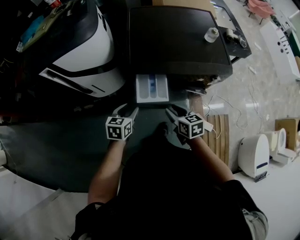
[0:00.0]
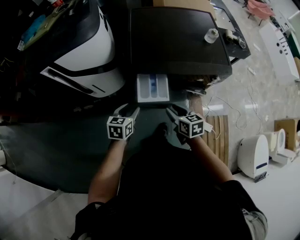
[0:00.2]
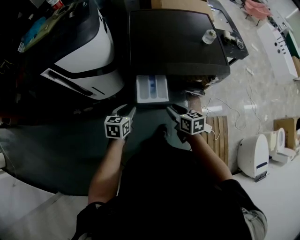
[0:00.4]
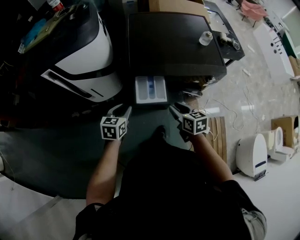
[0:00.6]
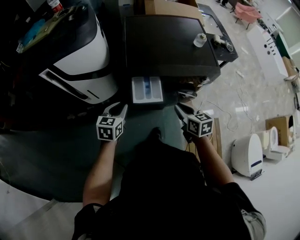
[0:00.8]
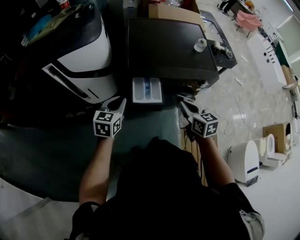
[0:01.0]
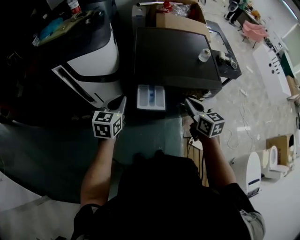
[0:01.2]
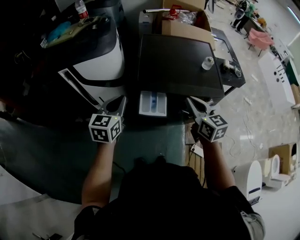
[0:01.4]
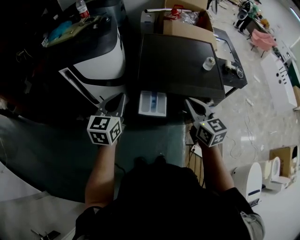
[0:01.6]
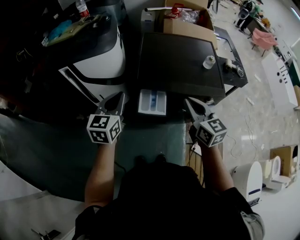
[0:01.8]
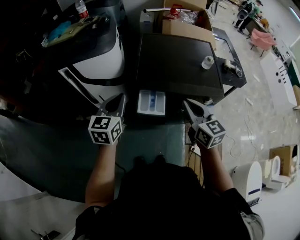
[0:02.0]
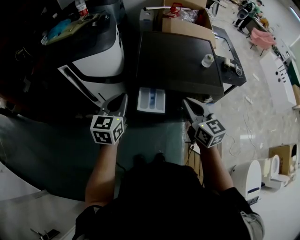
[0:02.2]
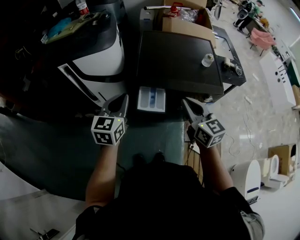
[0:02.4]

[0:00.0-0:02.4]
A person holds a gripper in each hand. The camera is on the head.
0:00.0 to 0:01.2: The grippers both shift upward by some 15 cm. The left gripper closes. The right gripper closes its fingers.
0:01.2 to 0:02.4: Both grippers move upward, some 10 cm.

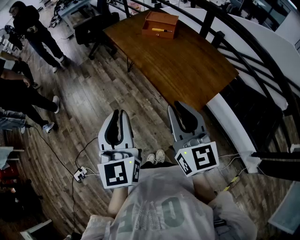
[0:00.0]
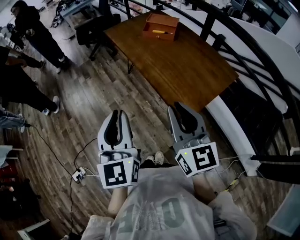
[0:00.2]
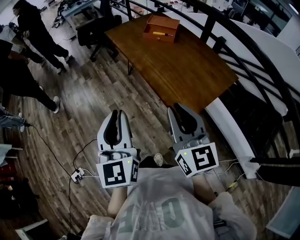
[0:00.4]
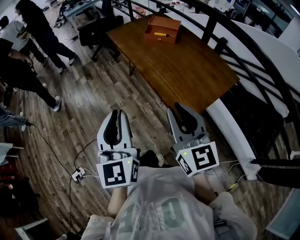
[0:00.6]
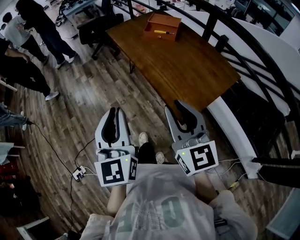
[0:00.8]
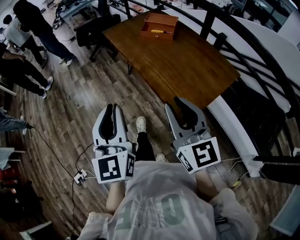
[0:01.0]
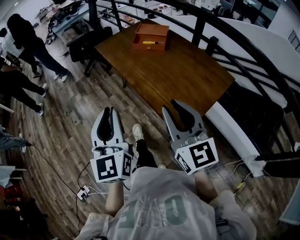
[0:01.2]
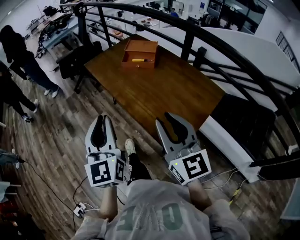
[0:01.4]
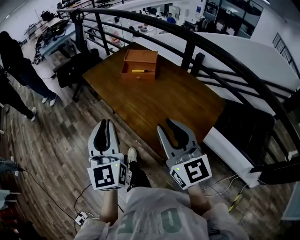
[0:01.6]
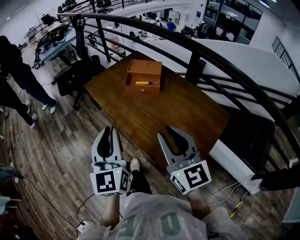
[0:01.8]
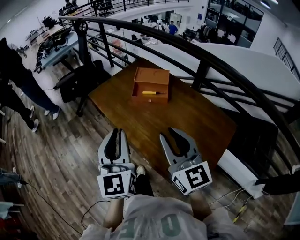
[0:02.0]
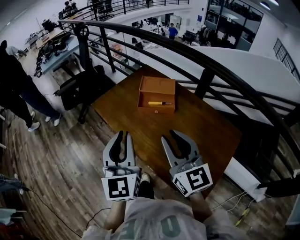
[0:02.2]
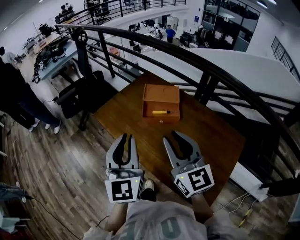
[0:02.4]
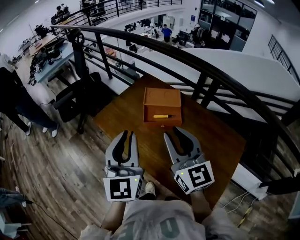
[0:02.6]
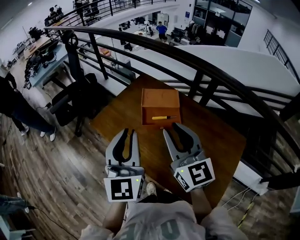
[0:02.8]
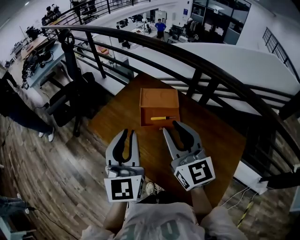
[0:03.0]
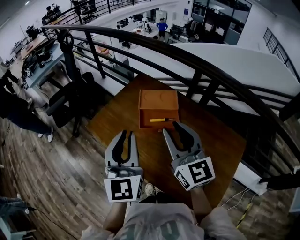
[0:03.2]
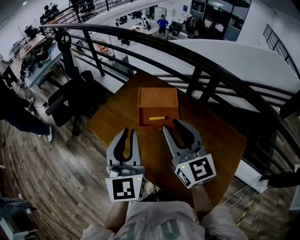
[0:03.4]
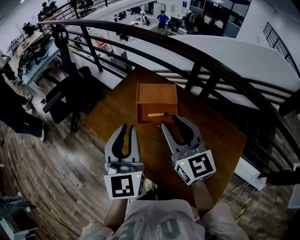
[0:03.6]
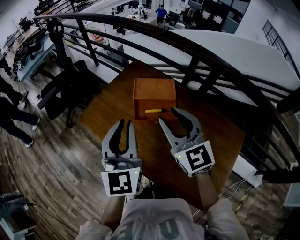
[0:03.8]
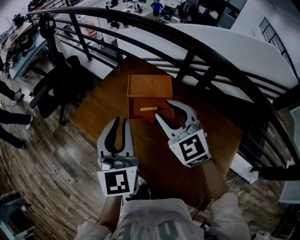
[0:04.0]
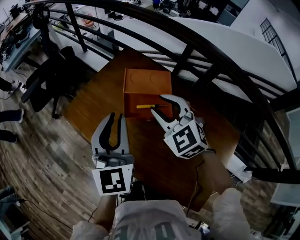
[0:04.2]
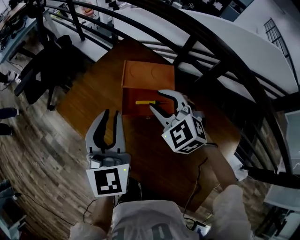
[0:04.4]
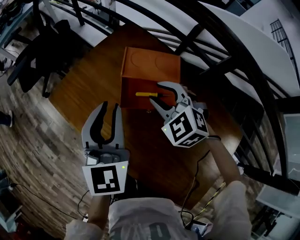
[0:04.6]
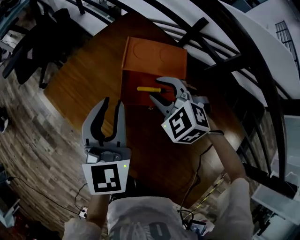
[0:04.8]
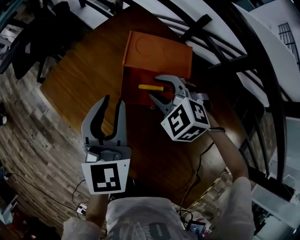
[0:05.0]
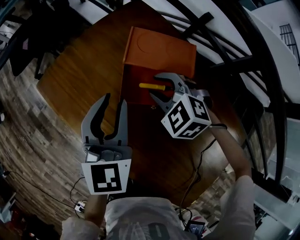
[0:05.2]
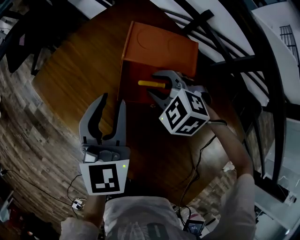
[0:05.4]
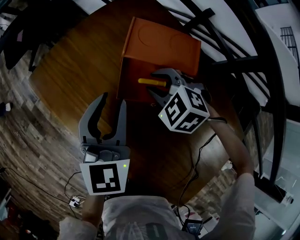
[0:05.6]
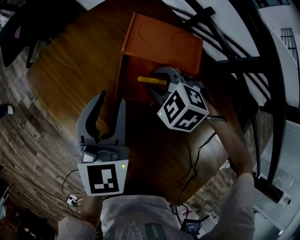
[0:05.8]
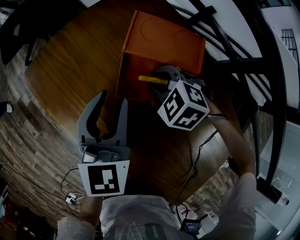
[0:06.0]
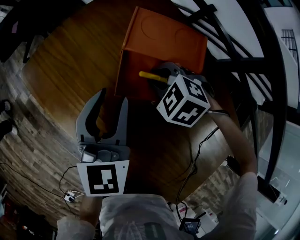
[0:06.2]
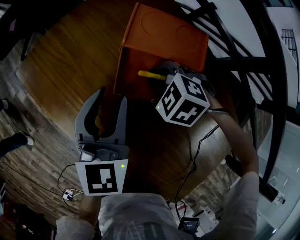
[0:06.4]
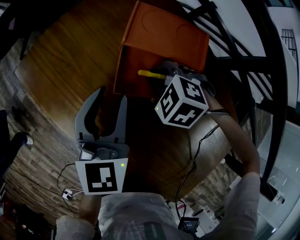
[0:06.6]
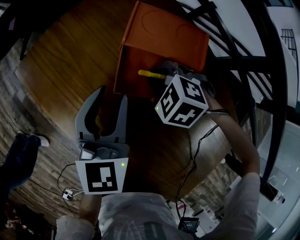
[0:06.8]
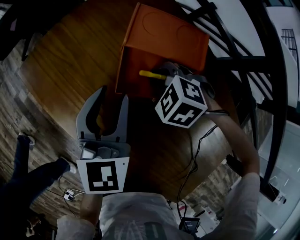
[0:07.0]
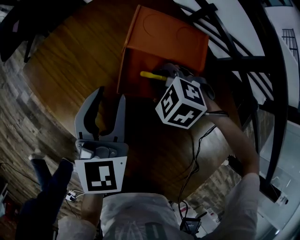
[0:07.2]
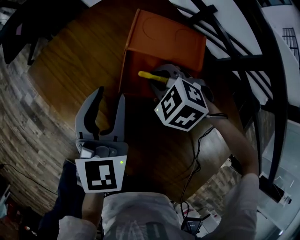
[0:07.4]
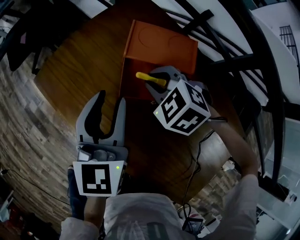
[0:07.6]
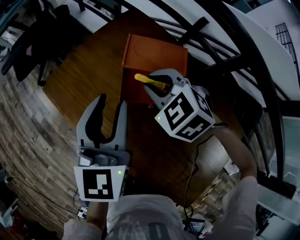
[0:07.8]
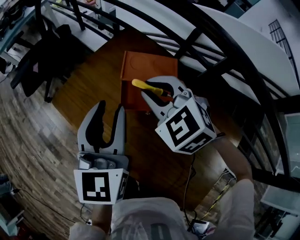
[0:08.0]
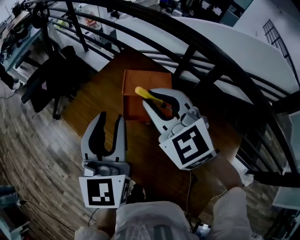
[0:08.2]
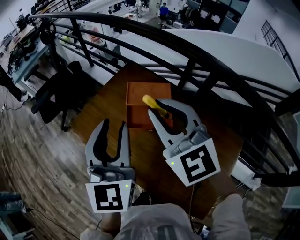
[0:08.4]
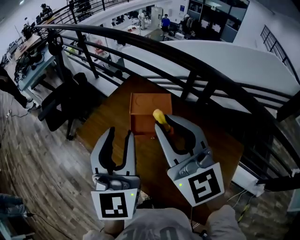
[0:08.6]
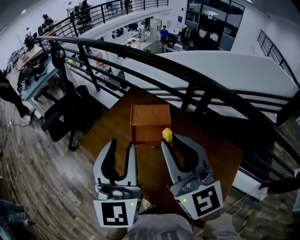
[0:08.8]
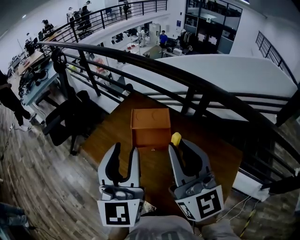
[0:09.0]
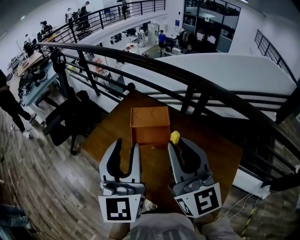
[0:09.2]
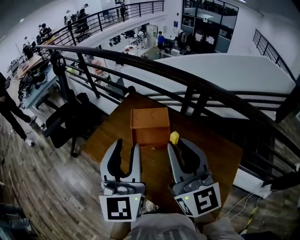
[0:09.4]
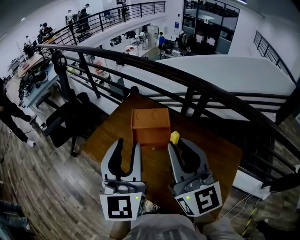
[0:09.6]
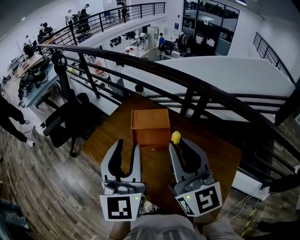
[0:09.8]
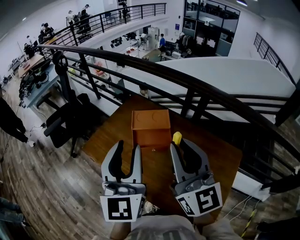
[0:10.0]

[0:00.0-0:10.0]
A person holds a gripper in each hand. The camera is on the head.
0:00.0 to 0:01.4: The left gripper goes approximately 15 cm forward; the right gripper moves forward, some 10 cm.
0:01.4 to 0:02.8: The grippers both shift forward by about 35 cm.
0:02.8 to 0:04.2: Both grippers travel together forward and downward, about 15 cm. The right gripper angles its fingers downward, by roughly 30 degrees.
0:04.2 to 0:05.8: Both grippers travel together downward, about 20 cm. The right gripper tilts its fingers some 30 degrees downward.
0:05.8 to 0:07.2: The grippers move only a little.
0:07.2 to 0:08.6: The left gripper heads upward and backward, covering roughly 30 cm, and rotates about 30 degrees. The right gripper goes some 40 cm upward, and tilts its fingers about 80 degrees upward.
0:08.6 to 0:10.0: The right gripper shifts approximately 5 cm backward.

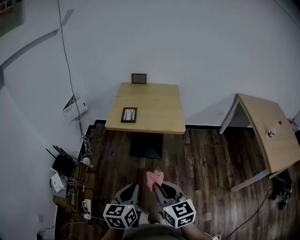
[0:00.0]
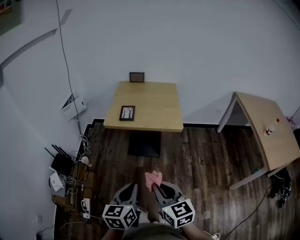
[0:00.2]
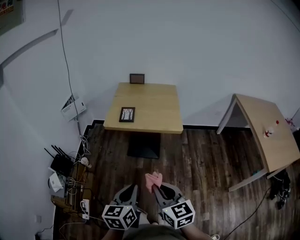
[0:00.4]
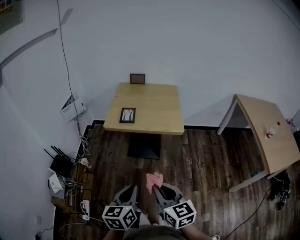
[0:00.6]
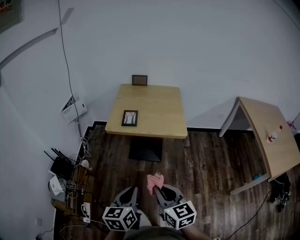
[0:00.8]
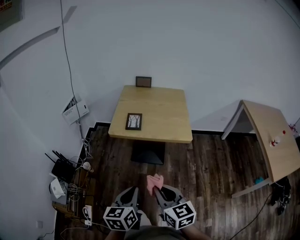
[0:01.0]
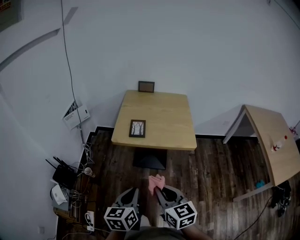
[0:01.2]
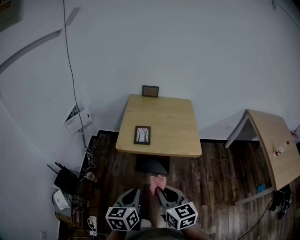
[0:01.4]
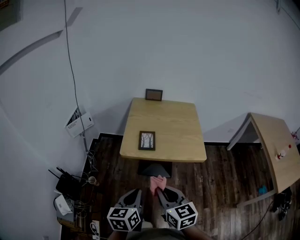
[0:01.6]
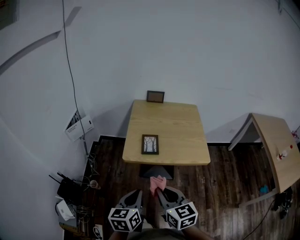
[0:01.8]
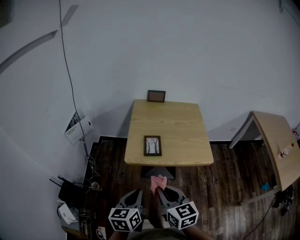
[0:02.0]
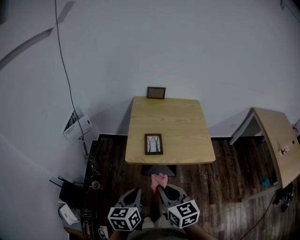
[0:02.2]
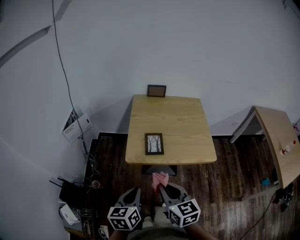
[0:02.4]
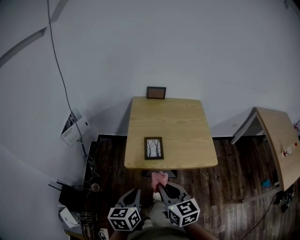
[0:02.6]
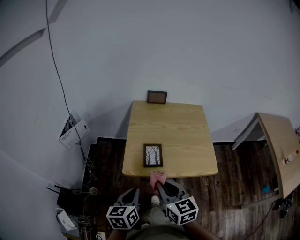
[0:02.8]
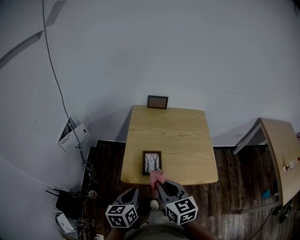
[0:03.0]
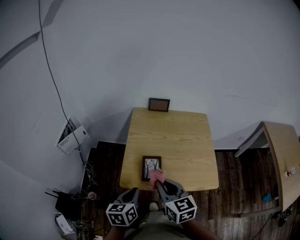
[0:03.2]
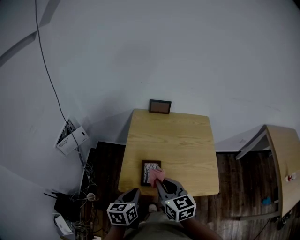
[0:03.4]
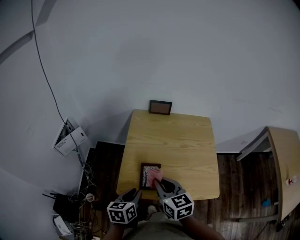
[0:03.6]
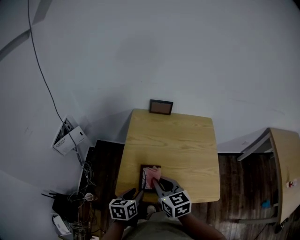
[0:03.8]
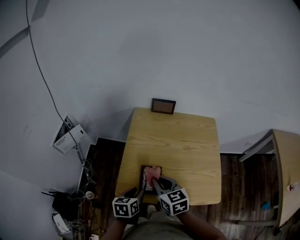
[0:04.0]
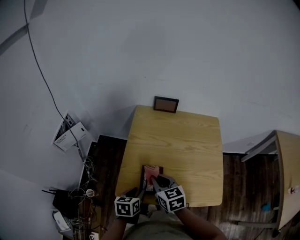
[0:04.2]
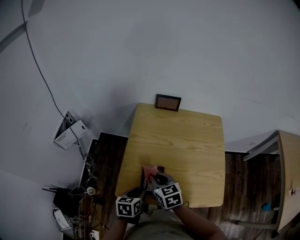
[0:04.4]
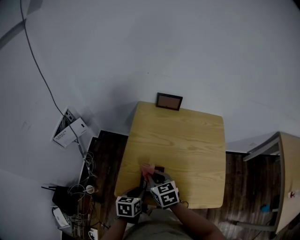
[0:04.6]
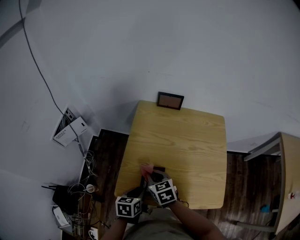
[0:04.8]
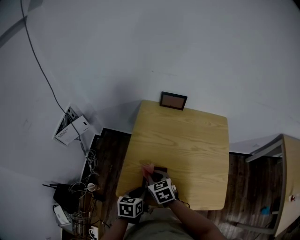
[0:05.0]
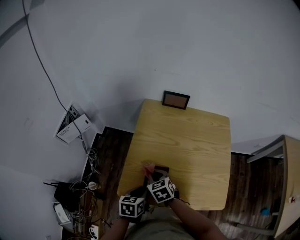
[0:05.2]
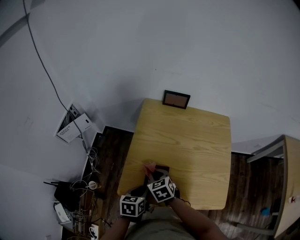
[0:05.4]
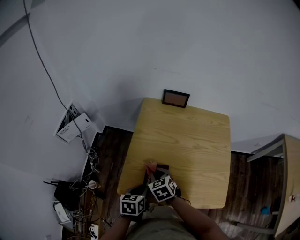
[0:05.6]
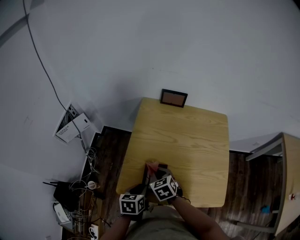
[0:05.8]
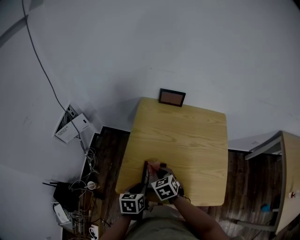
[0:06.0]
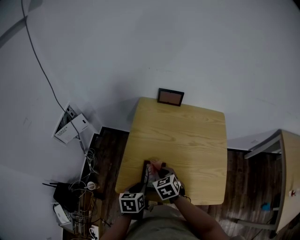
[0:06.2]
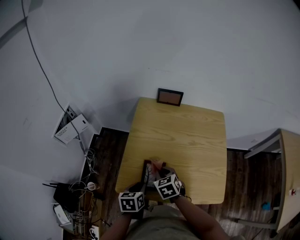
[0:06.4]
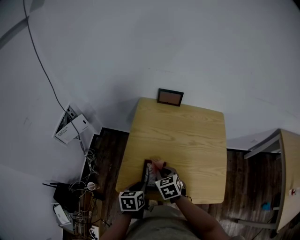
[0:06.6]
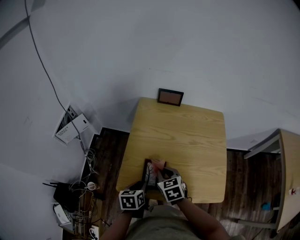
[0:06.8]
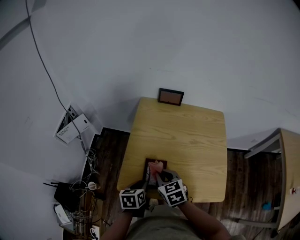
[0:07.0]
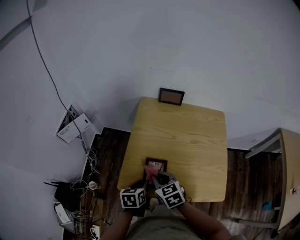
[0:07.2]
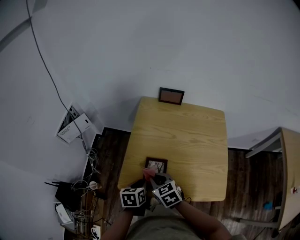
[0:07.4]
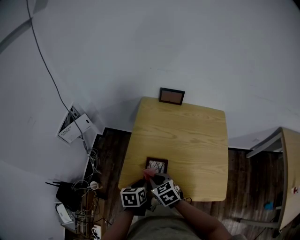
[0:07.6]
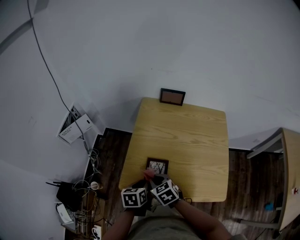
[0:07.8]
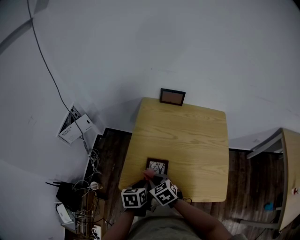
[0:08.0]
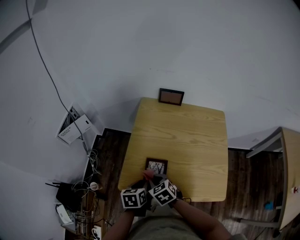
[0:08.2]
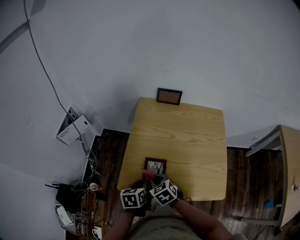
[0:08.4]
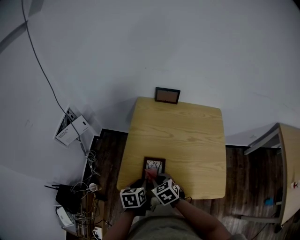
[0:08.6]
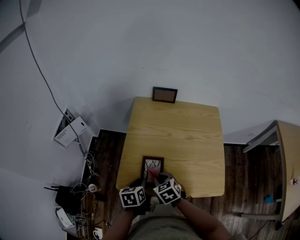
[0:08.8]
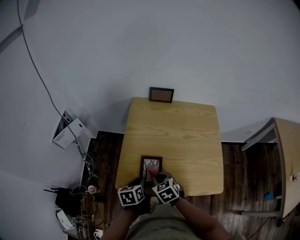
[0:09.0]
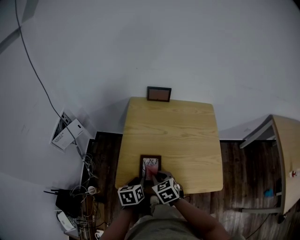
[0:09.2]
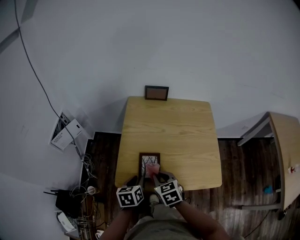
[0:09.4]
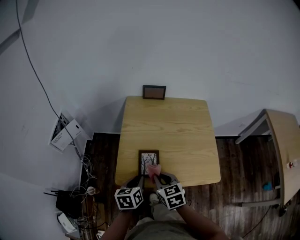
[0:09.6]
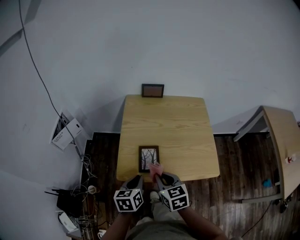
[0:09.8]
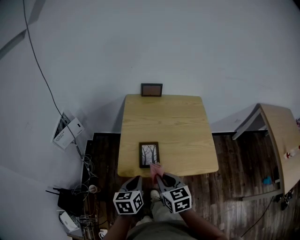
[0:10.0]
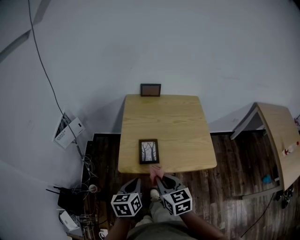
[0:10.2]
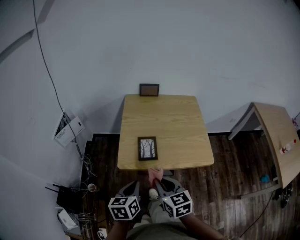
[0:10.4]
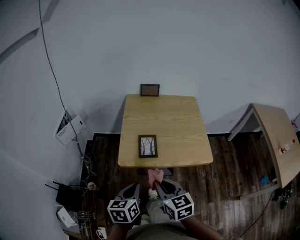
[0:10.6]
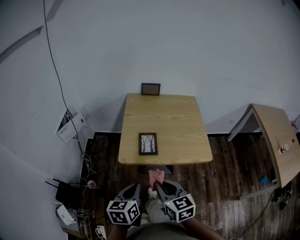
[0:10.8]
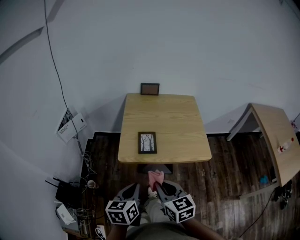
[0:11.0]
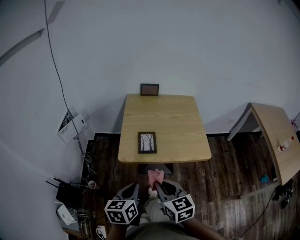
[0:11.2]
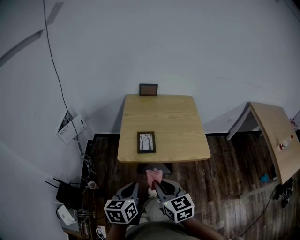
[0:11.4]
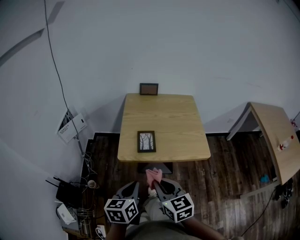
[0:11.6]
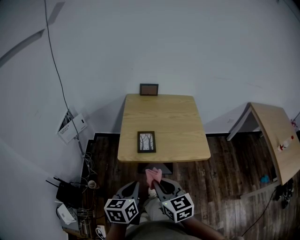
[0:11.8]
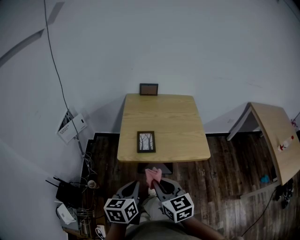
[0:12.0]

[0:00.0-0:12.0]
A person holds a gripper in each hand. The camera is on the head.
0:00.0 to 0:01.6: Both grippers move forward and to the left, some 25 cm.
0:01.6 to 0:03.0: Both grippers move forward, some 20 cm.
0:03.0 to 0:04.4: The right gripper travels forward and downward by about 25 cm, while the left gripper goes approximately 20 cm downward and forward, swivels some 20 degrees, and opens its fingers.
0:04.4 to 0:06.0: The right gripper travels downward by about 5 cm, and turns by about 20 degrees.
0:06.0 to 0:07.6: The right gripper travels backward by approximately 5 cm.
0:07.6 to 0:09.0: The grippers move only a little.
0:09.0 to 0:10.4: Both grippers travel together backward and upward, some 25 cm. The left gripper closes, while the right gripper swivels approximately 30 degrees.
0:10.4 to 0:12.0: The grippers both shift backward by roughly 5 cm.
